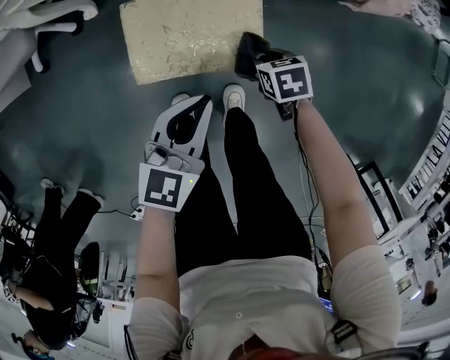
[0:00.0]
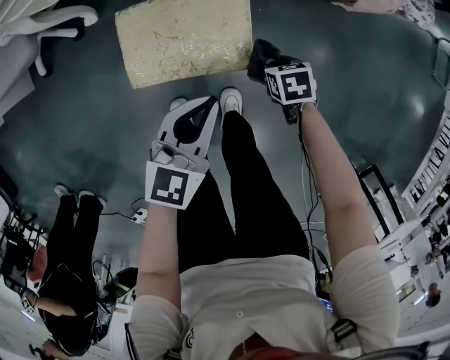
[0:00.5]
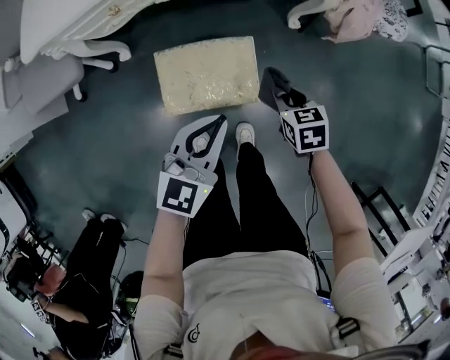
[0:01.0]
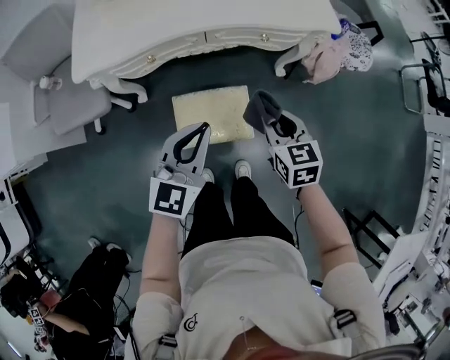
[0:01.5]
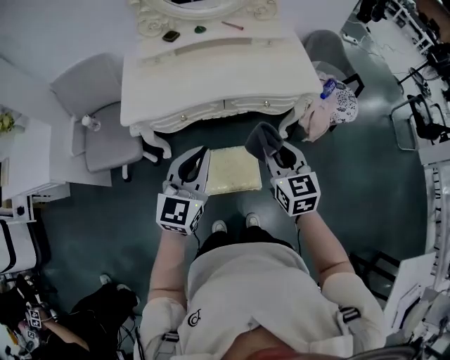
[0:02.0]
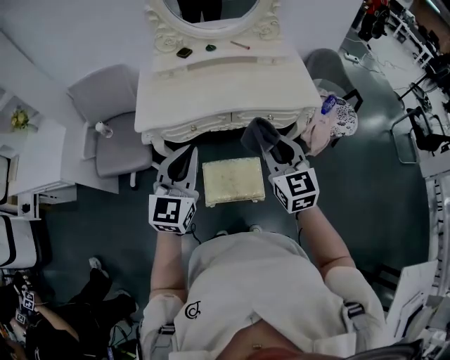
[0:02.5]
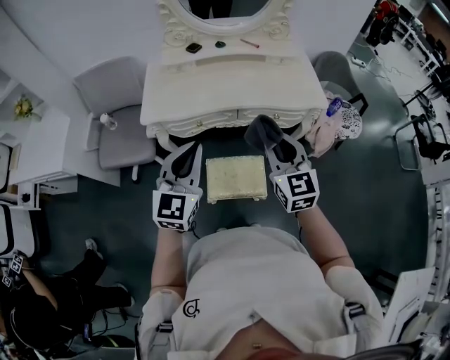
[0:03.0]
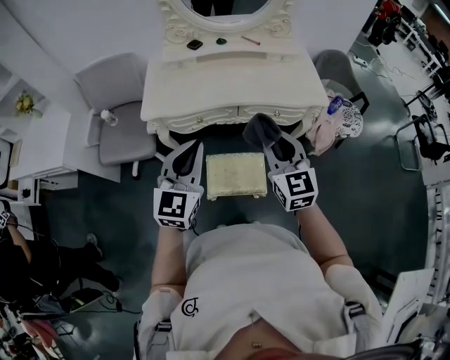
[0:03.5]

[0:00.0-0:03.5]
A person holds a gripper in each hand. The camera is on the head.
0:00.0 to 0:02.0: The two grippers go some 50 cm upward. The right gripper tilts its fingers about 50 degrees upward. Meanwhile the left gripper turns by approximately 30 degrees.
0:02.0 to 0:03.5: The grippers both shift upward and to the left by roughly 10 cm.

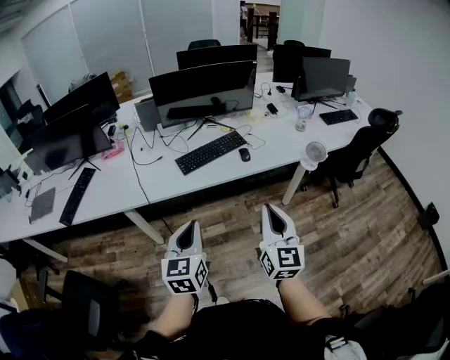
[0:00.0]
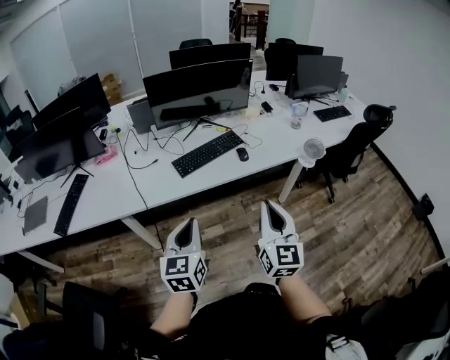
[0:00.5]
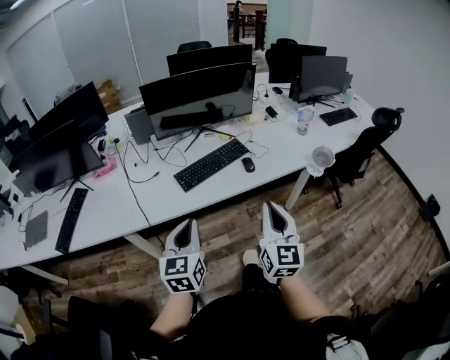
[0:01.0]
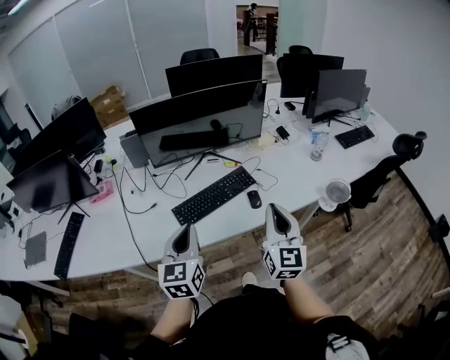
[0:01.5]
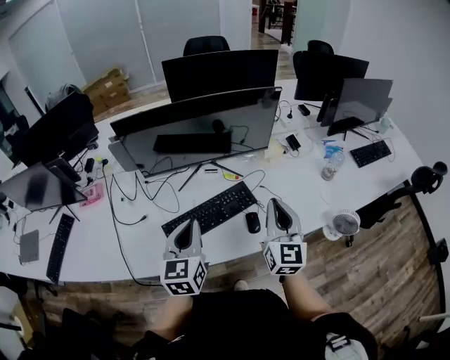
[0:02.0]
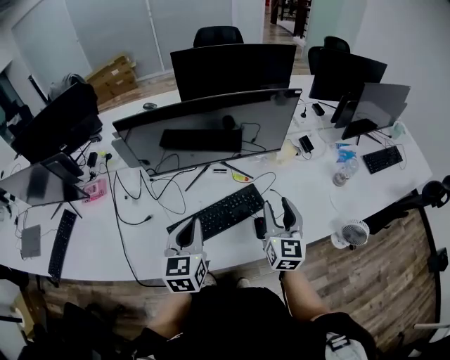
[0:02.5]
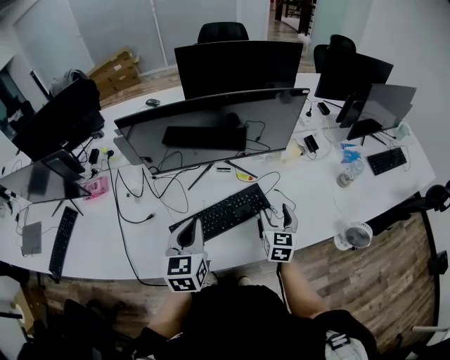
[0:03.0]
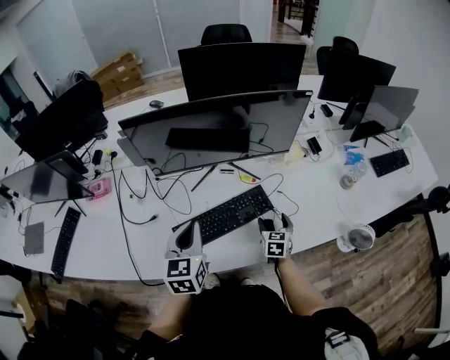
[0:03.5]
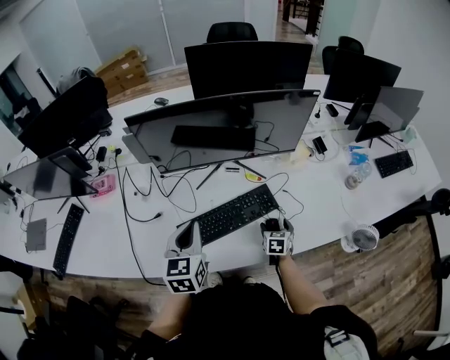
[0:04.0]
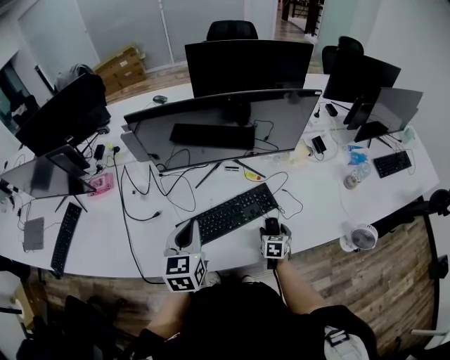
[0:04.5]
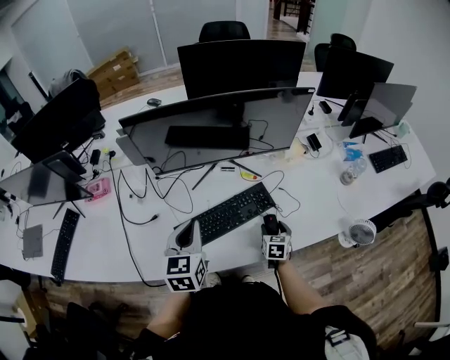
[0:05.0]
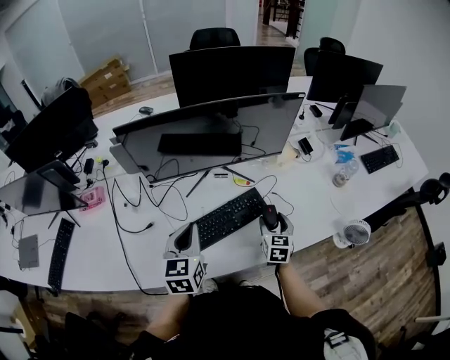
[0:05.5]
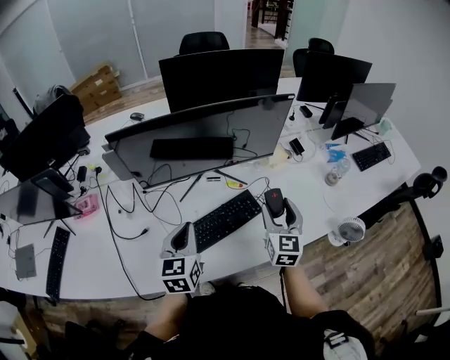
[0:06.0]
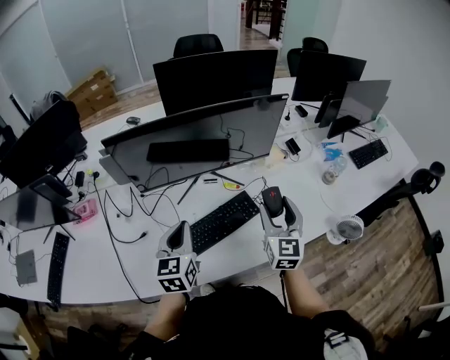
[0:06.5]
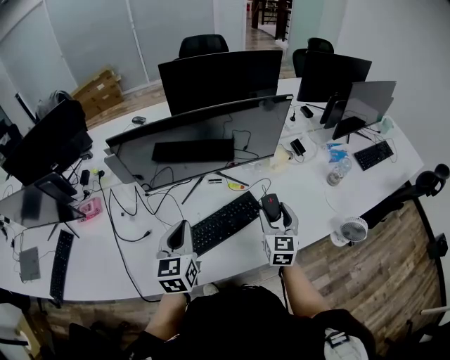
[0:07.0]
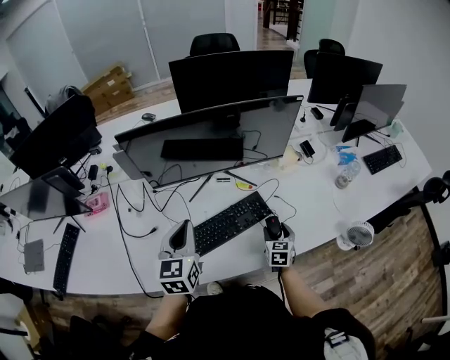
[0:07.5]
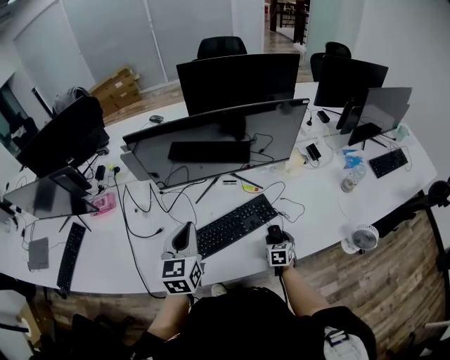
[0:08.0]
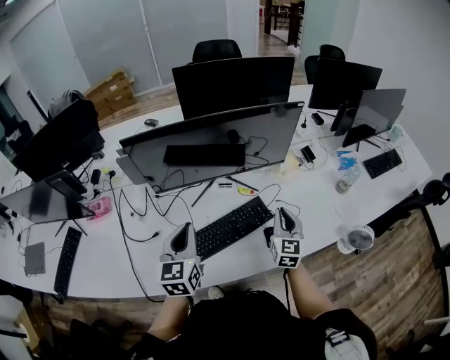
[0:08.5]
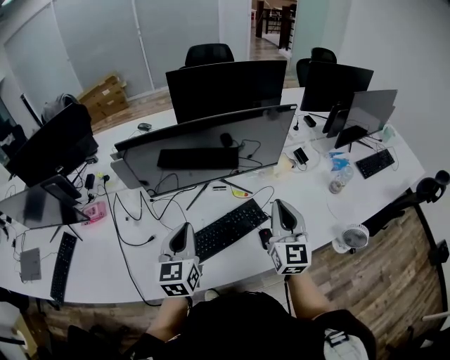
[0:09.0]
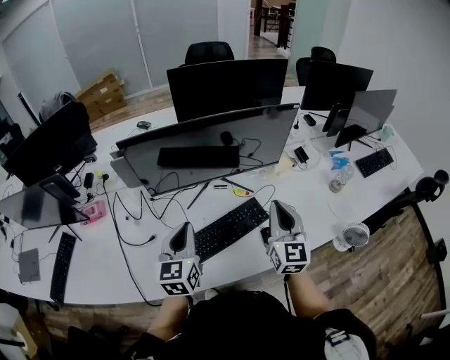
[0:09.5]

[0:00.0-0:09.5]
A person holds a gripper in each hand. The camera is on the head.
0:00.0 to 0:02.0: Both grippers are carried forward, some 50 cm.
0:02.0 to 0:04.0: The left gripper moves to the left, about 5 cm, while the right gripper moves downward, about 35 cm, angles its fingers downward, by about 50 degrees, and opens its fingers.
0:04.0 to 0:05.5: The right gripper shifts approximately 15 cm upward.
0:05.5 to 0:07.5: The right gripper travels upward and back again, some 20 cm each way.
0:07.5 to 0:09.5: The right gripper moves upward, approximately 30 cm, tilts its fingers approximately 40 degrees upward, and closes.

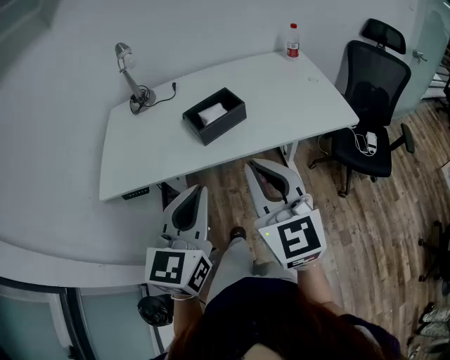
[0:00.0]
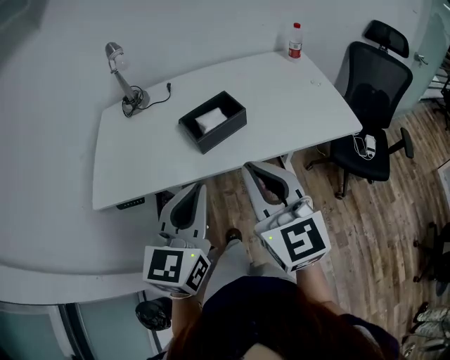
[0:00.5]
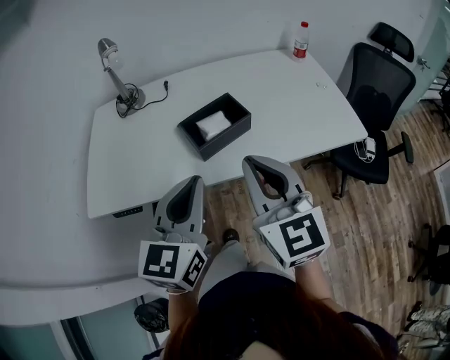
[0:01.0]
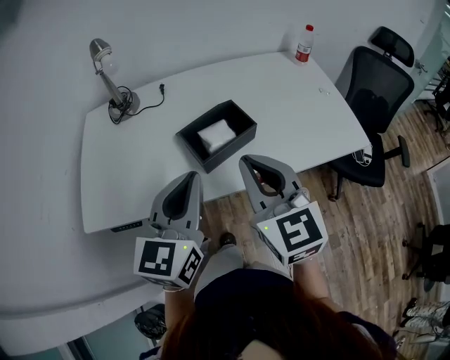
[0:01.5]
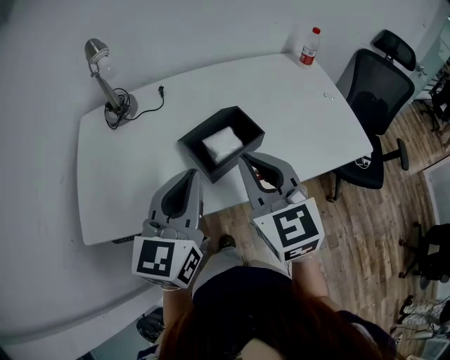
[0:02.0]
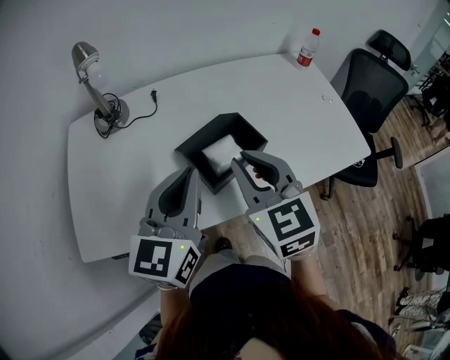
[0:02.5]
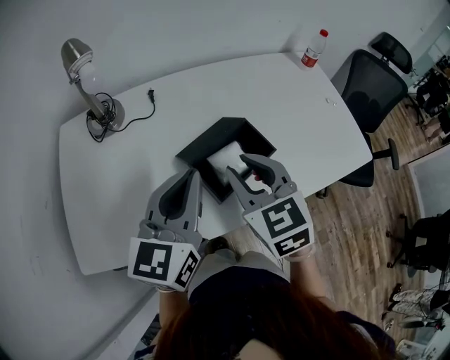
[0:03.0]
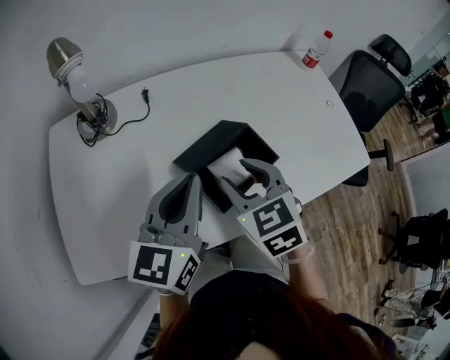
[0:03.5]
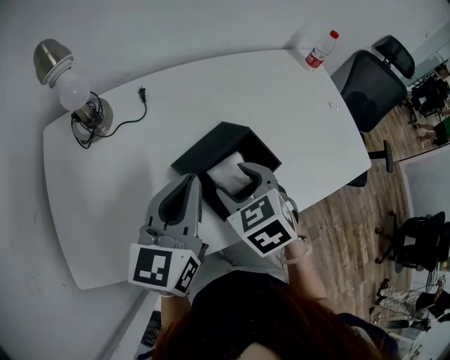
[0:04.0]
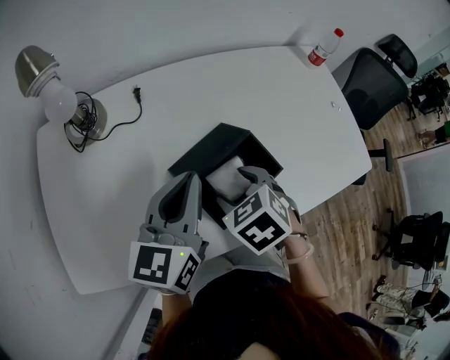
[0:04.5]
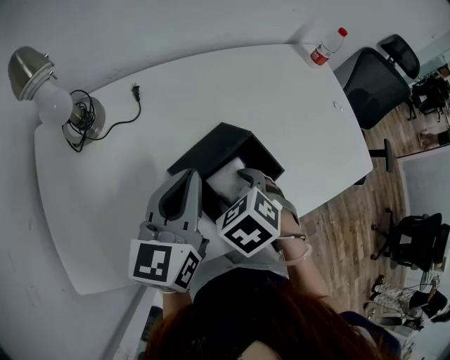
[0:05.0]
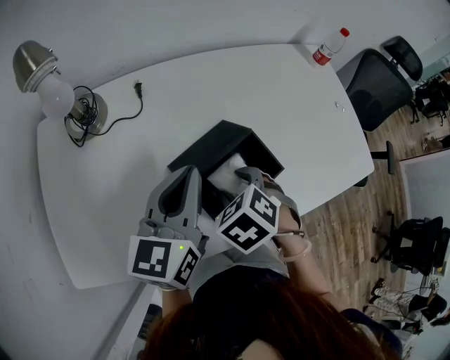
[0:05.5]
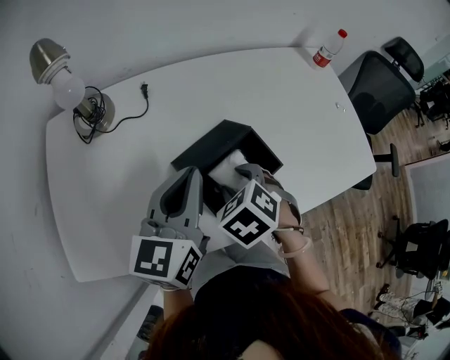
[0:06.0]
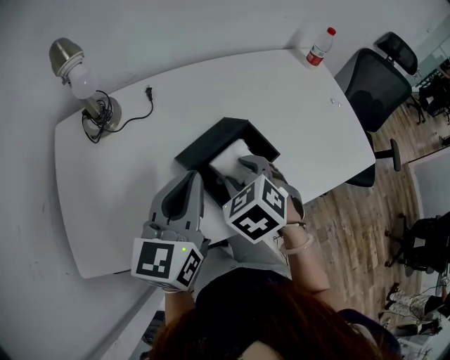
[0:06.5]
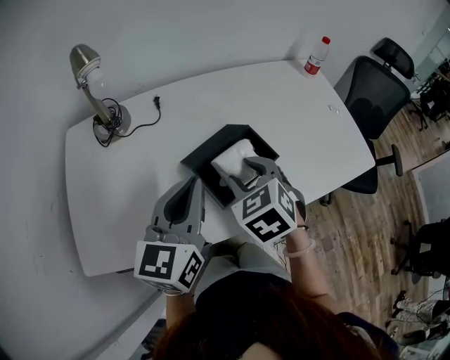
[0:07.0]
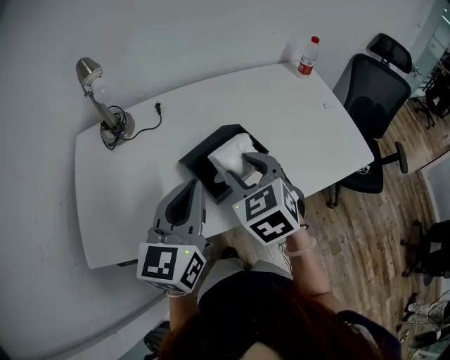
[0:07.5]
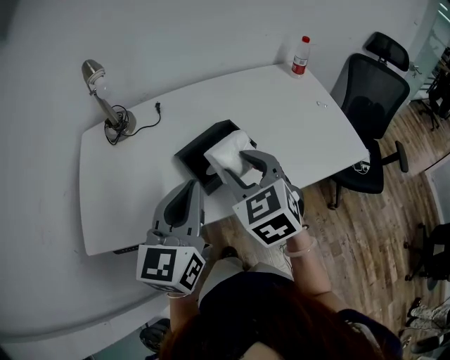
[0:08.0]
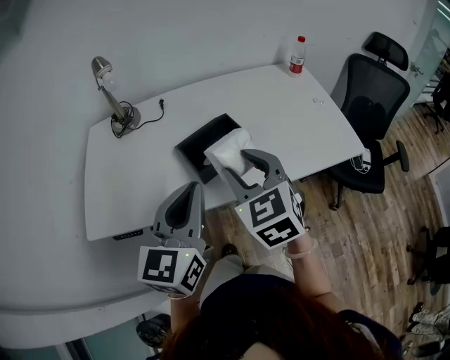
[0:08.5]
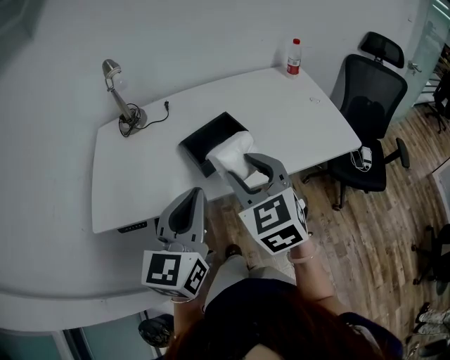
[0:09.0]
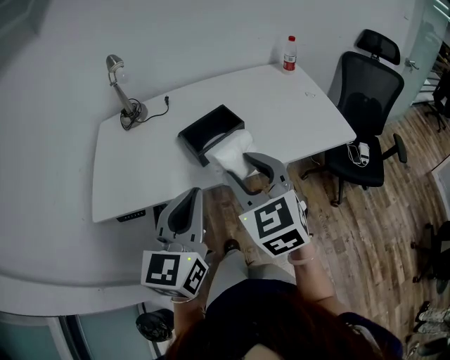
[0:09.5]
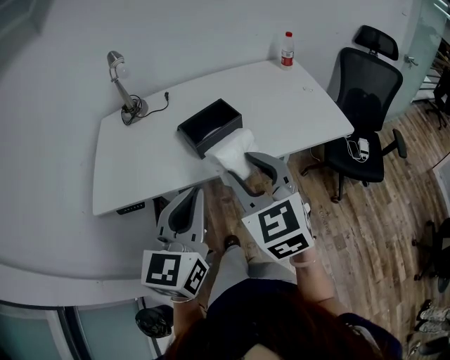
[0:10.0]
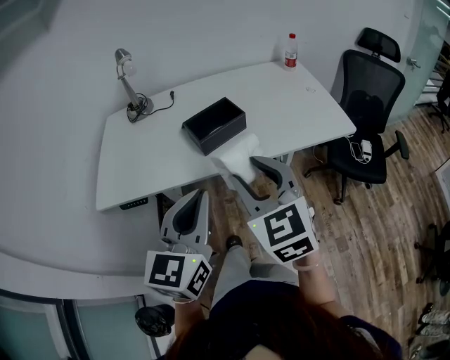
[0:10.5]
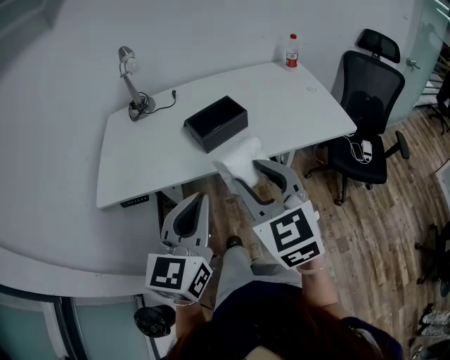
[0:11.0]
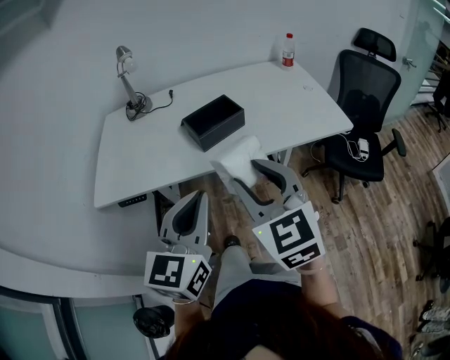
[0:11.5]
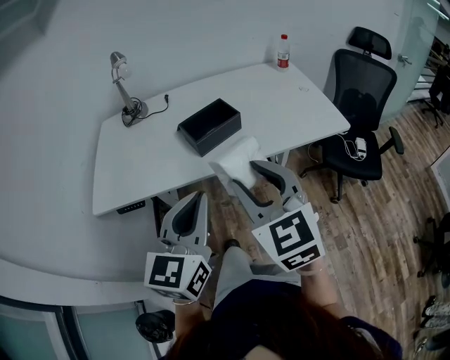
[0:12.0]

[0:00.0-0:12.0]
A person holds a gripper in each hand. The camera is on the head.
0:00.0 to 0:02.0: Both grippers travel together forward, about 20 cm.
0:02.0 to 0:04.0: The right gripper moves downward and forward, approximately 20 cm, angles its fingers downward, by about 40 degrees, and opens, while the left gripper shifts approximately 15 cm forward and downward.
0:06.0 to 0:08.0: The left gripper is displaced backward and upward by about 15 cm. Meanwhile the right gripper shifts some 15 cm upward and backward, and tilts its fingers roughly 40 degrees upward.
0:08.0 to 0:10.0: The grippers both shift backward by about 20 cm.
0:10.0 to 0:12.0: There are only small adjustments of the grippers.

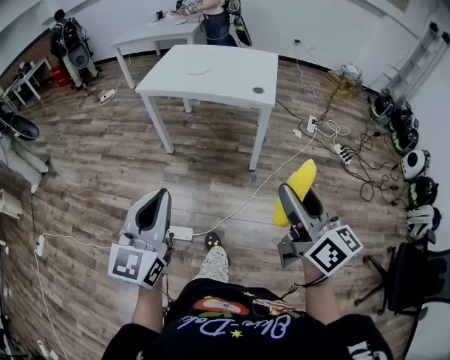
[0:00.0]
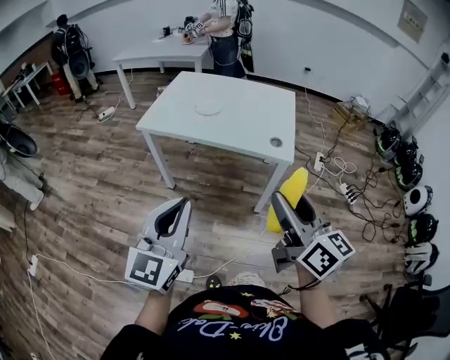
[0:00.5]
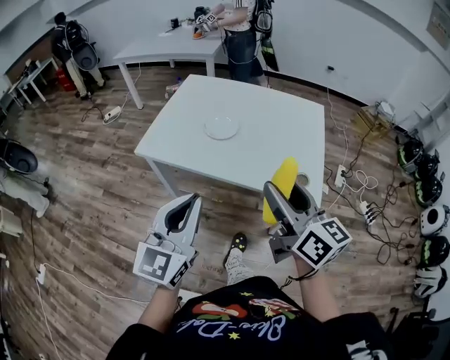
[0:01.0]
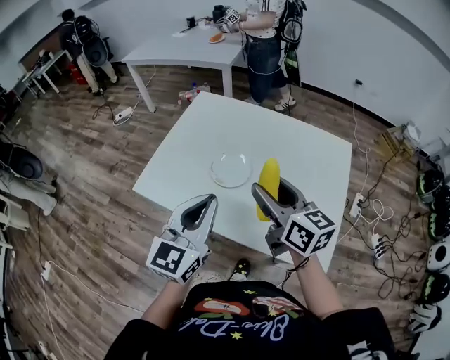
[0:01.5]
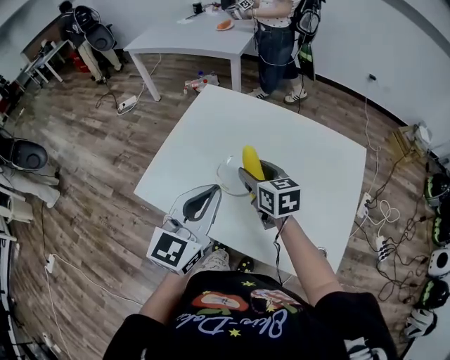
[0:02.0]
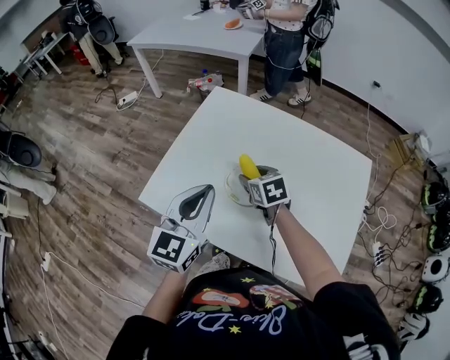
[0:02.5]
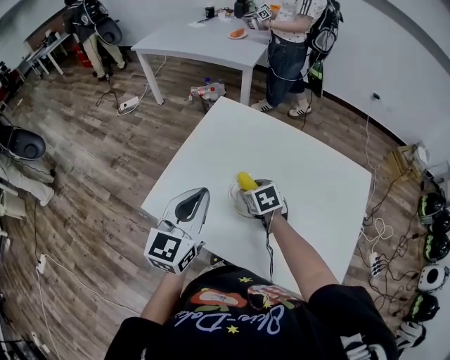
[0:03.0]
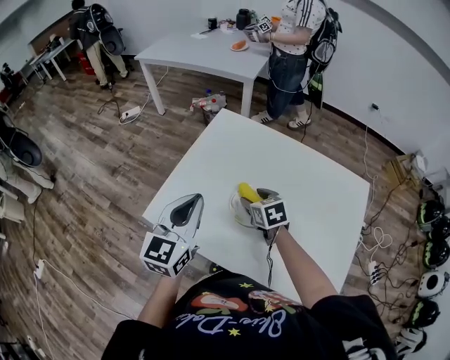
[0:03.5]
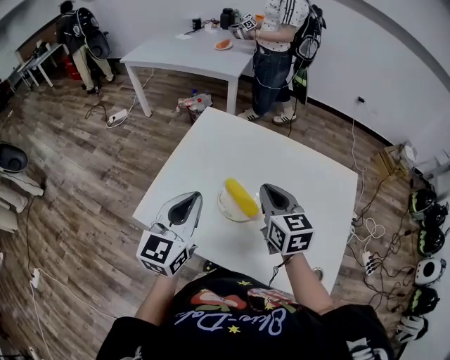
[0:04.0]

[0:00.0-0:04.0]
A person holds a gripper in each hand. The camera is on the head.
0:00.0 to 0:02.0: Both grippers are carried forward, about 80 cm. The right gripper tilts its fingers about 30 degrees downward.
0:02.0 to 0:04.0: The left gripper is displaced to the left and forward by roughly 10 cm, while the right gripper heads upward, covering about 5 cm, and closes.
